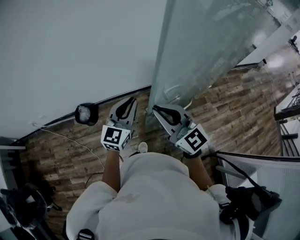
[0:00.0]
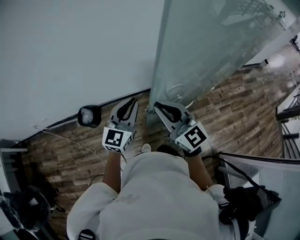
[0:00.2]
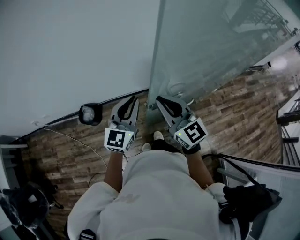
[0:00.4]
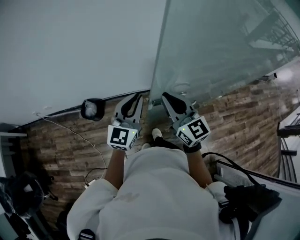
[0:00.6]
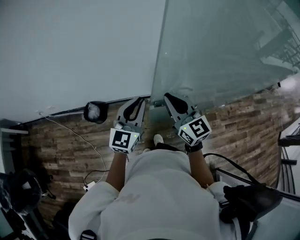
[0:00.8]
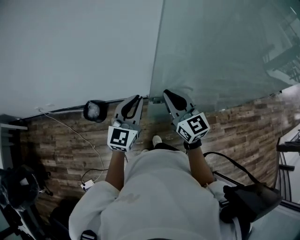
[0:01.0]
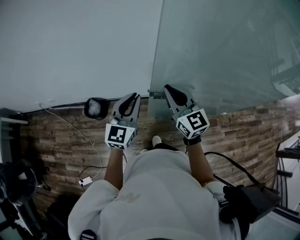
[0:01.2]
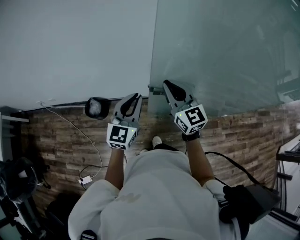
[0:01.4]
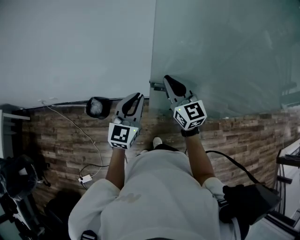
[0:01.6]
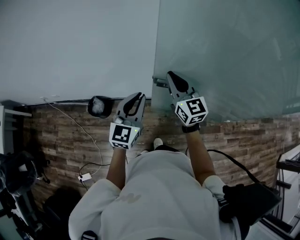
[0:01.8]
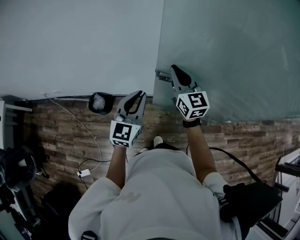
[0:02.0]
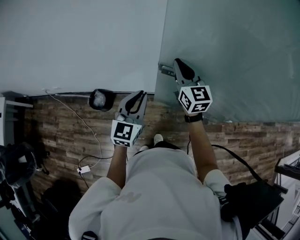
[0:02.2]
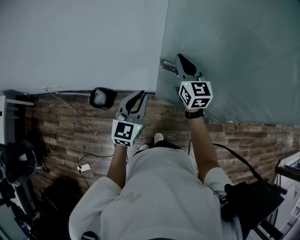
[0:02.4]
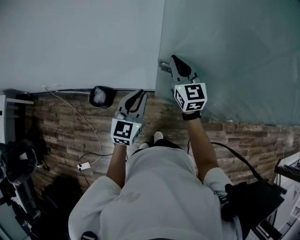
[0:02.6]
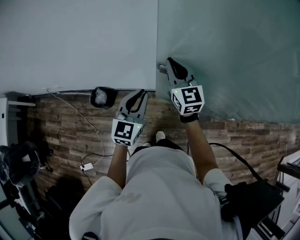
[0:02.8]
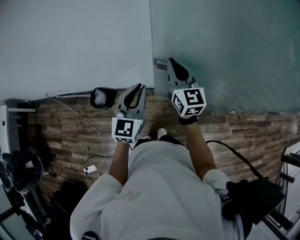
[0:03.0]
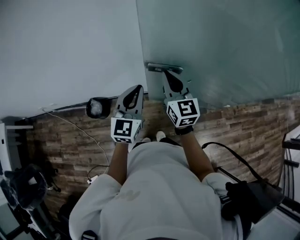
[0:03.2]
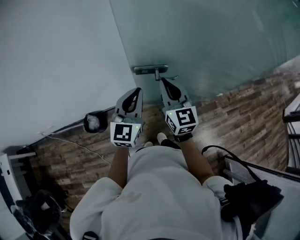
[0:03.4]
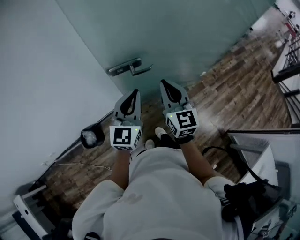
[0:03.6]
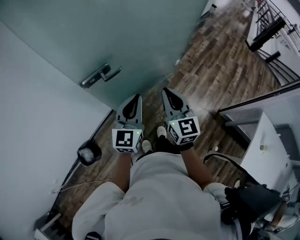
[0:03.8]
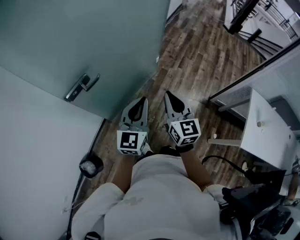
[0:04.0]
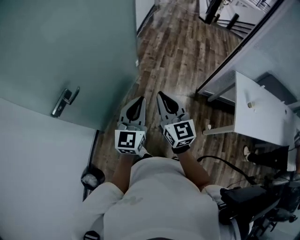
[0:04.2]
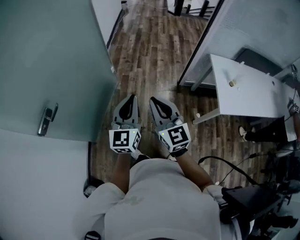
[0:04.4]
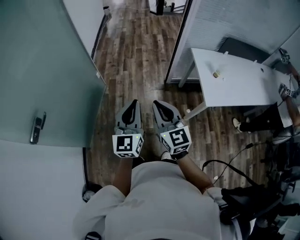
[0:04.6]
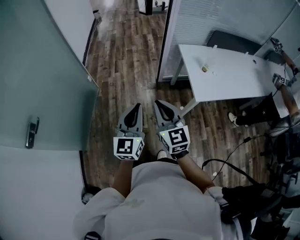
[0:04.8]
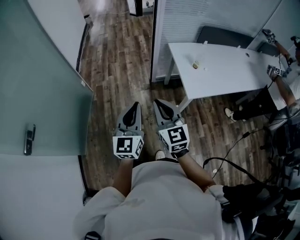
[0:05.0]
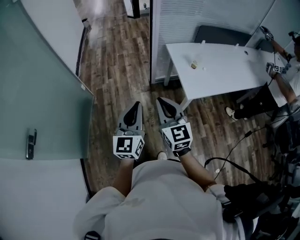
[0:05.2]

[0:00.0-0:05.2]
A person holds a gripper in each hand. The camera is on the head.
0:00.0 to 0:01.8: The left gripper is displaced forward by approximately 20 cm. Meanwhile the right gripper goes approximately 35 cm forward.
0:01.8 to 0:03.4: The left gripper is displaced to the right by roughly 5 cm, while the right gripper shifts roughly 10 cm backward and to the right, and rotates approximately 20 degrees.
0:03.4 to 0:05.2: Both grippers are carried some 70 cm. The left gripper swivels approximately 80 degrees, while the right gripper turns by roughly 80 degrees.

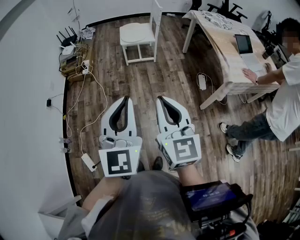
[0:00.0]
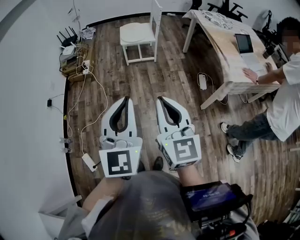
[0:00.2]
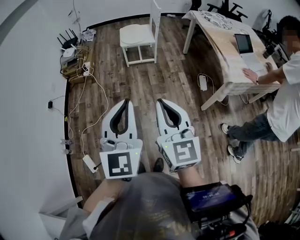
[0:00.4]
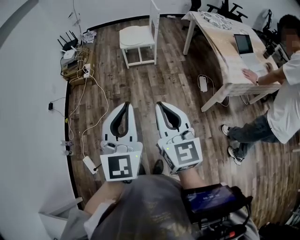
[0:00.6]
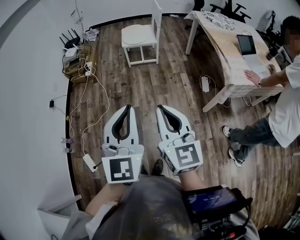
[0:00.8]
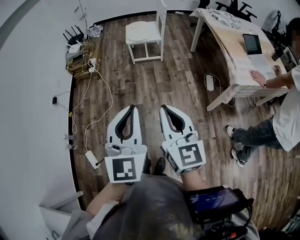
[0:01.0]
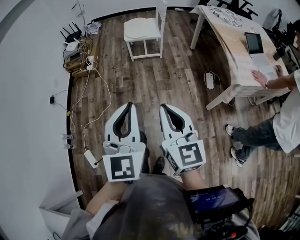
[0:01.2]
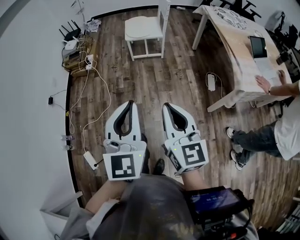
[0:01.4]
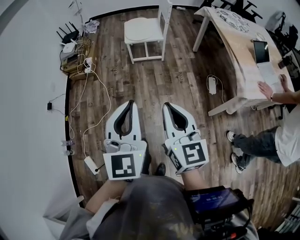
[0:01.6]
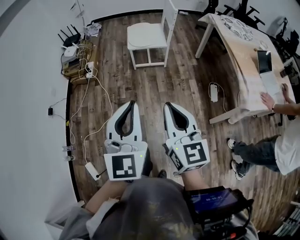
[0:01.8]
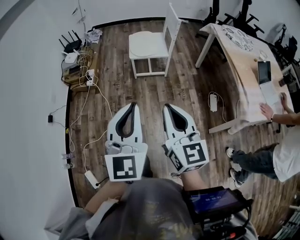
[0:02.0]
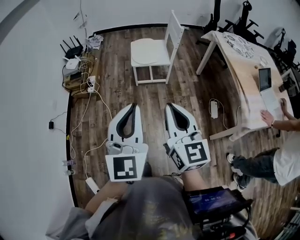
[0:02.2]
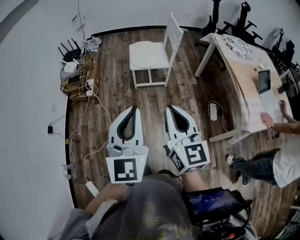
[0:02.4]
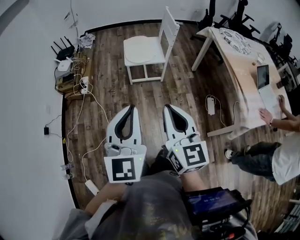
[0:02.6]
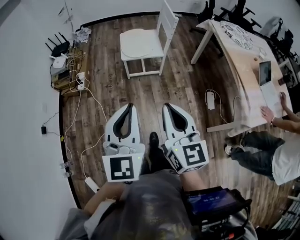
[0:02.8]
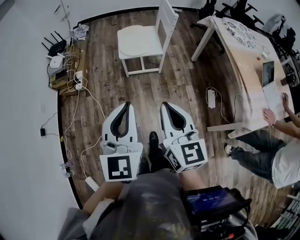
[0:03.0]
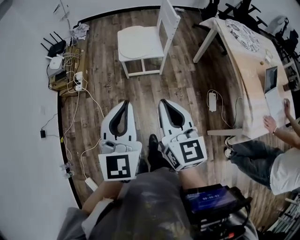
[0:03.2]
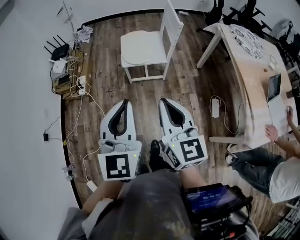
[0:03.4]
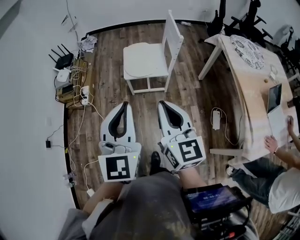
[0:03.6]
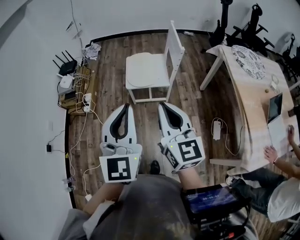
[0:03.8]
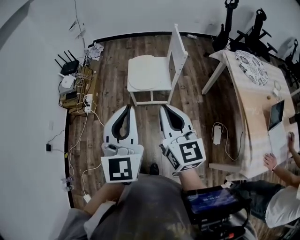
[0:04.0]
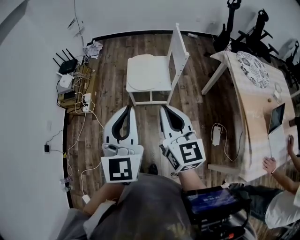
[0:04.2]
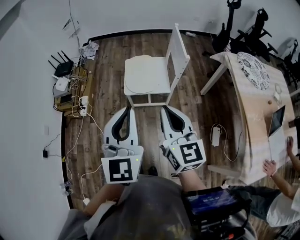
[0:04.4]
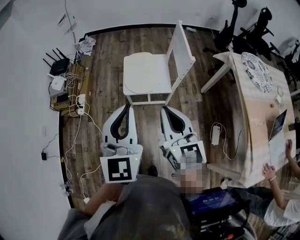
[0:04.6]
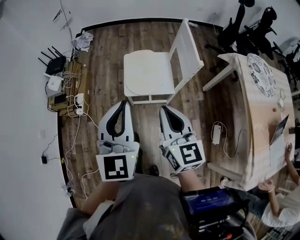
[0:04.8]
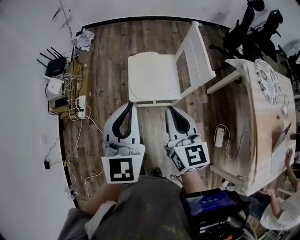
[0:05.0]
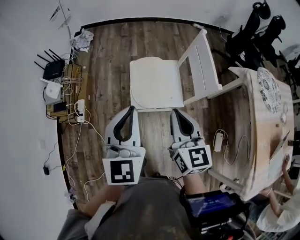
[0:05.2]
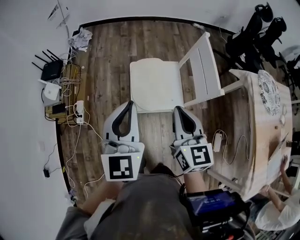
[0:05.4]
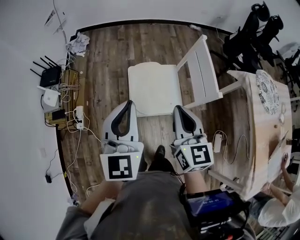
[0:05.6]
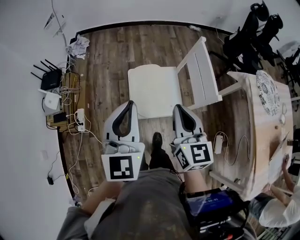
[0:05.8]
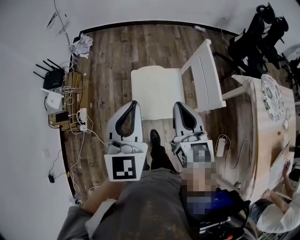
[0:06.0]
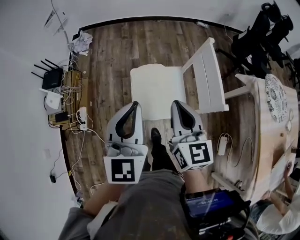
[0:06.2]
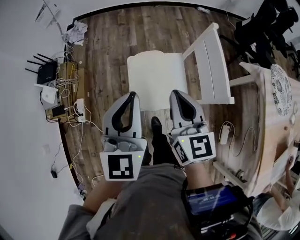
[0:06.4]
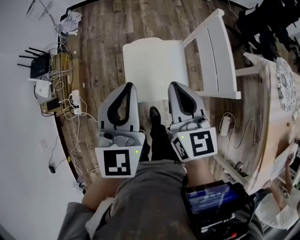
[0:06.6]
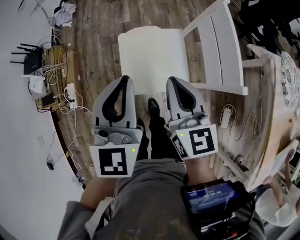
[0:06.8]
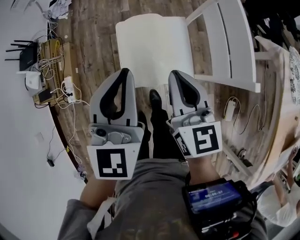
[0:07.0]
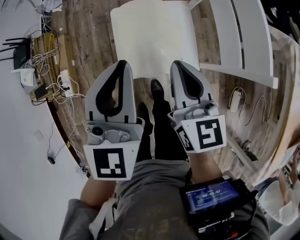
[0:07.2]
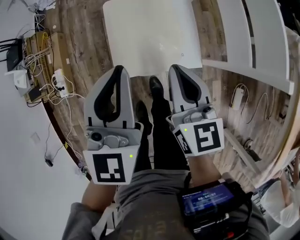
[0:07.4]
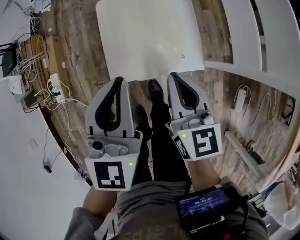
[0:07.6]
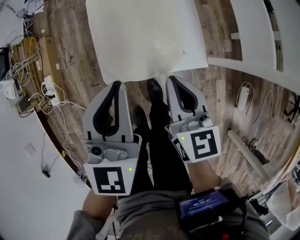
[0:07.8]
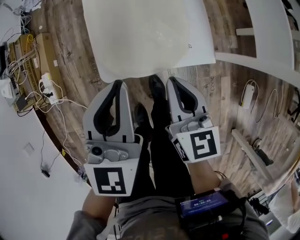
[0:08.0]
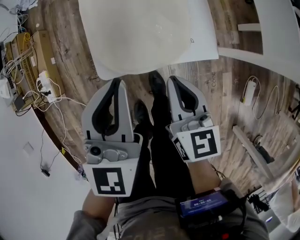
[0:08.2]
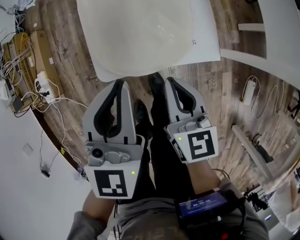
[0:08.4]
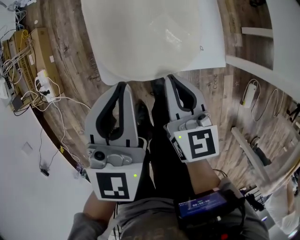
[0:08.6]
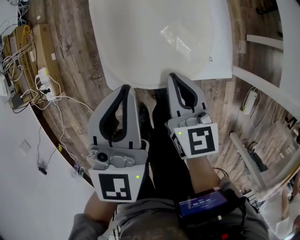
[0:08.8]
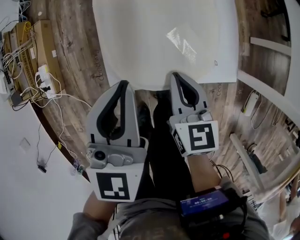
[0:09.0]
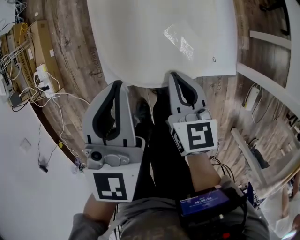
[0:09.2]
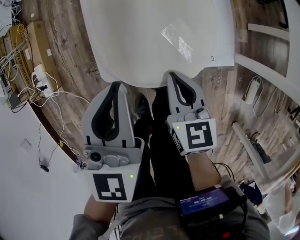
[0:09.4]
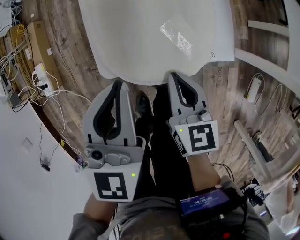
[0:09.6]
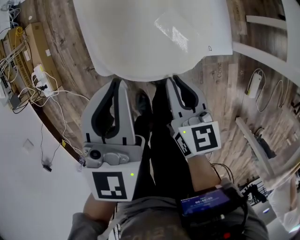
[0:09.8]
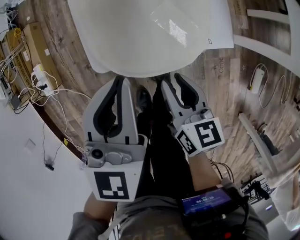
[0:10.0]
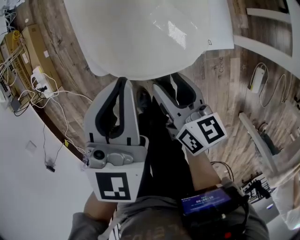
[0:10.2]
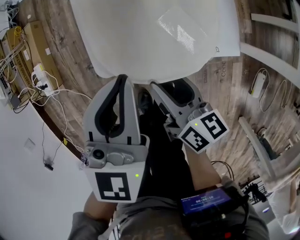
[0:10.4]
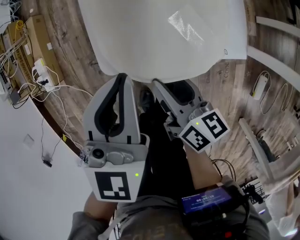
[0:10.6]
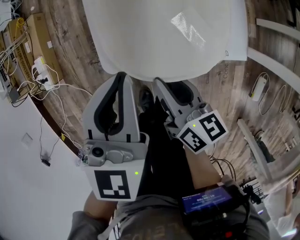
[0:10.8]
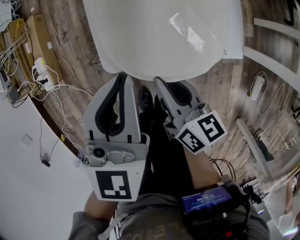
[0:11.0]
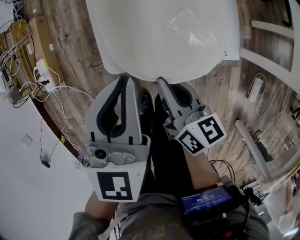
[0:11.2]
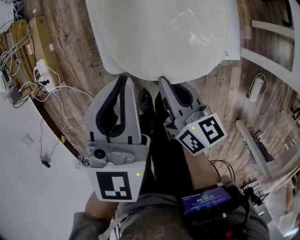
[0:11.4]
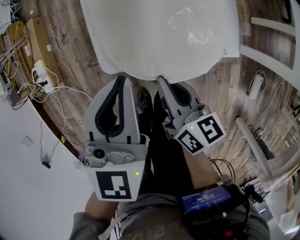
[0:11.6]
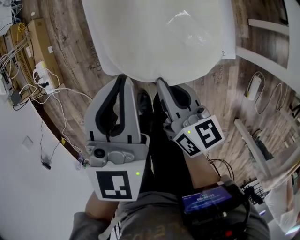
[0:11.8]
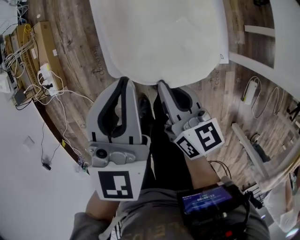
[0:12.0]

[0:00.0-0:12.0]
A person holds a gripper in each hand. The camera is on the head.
0:00.0 to 0:01.6: The right gripper travels forward and downward by some 15 cm, while the left gripper travels forward by approximately 15 cm.
0:01.6 to 0:03.0: Both grippers travel together forward, about 25 cm.
0:03.0 to 0:04.4: The grippers both shift forward by roughly 25 cm.
0:04.4 to 0:06.0: Both grippers travel together forward, about 30 cm.
0:06.0 to 0:07.6: Both grippers travel together downward, approximately 30 cm.
0:07.6 to 0:09.0: The two grippers go about 15 cm downward.
0:09.0 to 0:10.4: The right gripper moves backward, some 5 cm, rotates roughly 30 degrees, and opens its fingers.
0:10.4 to 0:12.0: The grippers both shift upward by about 5 cm. The right gripper closes up.

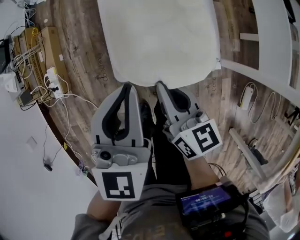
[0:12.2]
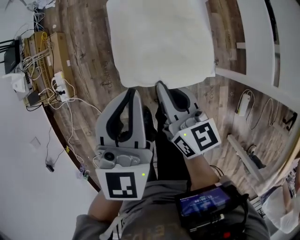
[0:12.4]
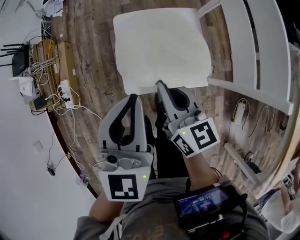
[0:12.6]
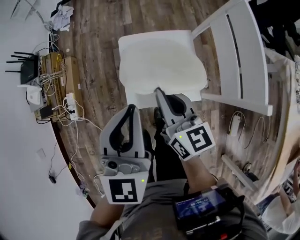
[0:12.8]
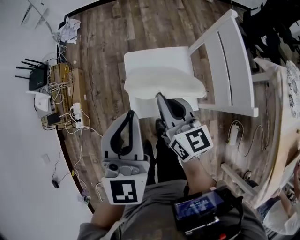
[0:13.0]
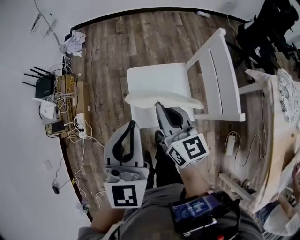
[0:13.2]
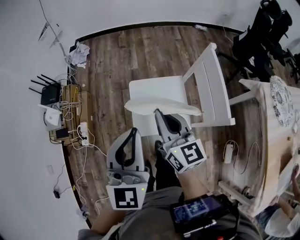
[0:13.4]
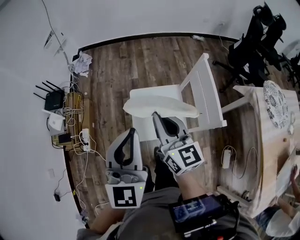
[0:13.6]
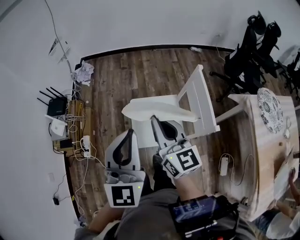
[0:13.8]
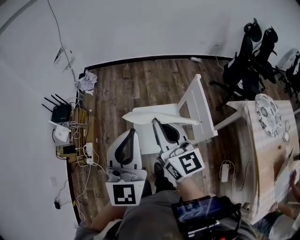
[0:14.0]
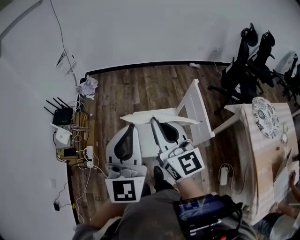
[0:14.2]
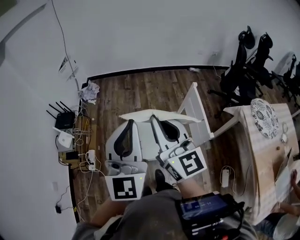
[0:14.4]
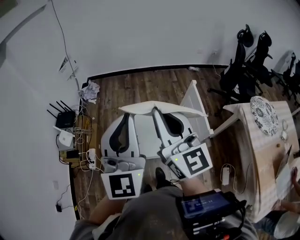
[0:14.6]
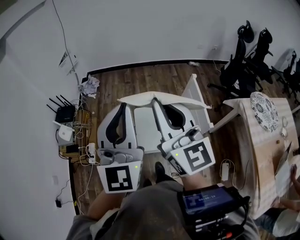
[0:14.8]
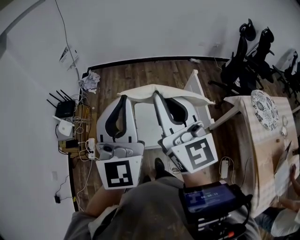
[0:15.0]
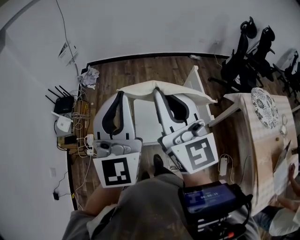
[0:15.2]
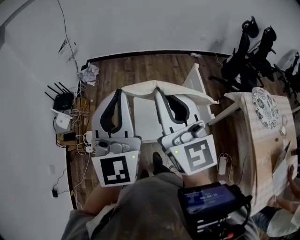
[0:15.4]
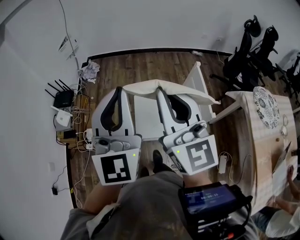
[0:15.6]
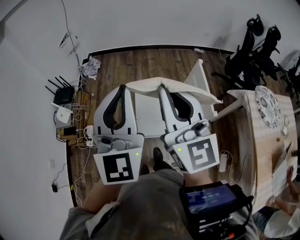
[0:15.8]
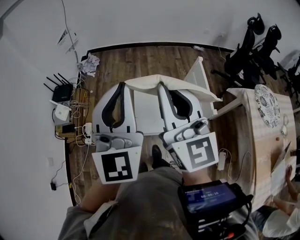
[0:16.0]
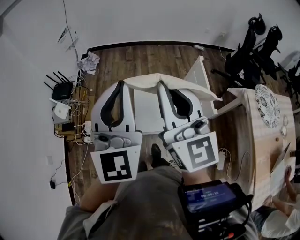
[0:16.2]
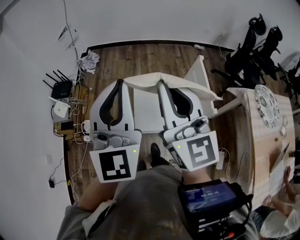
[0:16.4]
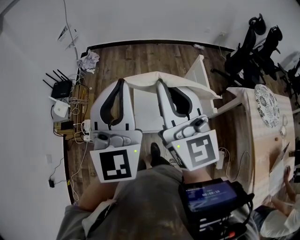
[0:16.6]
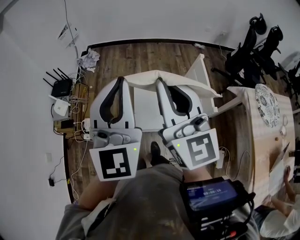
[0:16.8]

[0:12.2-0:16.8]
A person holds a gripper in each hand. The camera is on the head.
0:12.2 to 0:13.8: The grippers both shift upward by roughly 40 cm. The left gripper rotates approximately 30 degrees. The right gripper turns by some 30 degrees.
0:13.8 to 0:15.2: The right gripper is displaced upward by roughly 20 cm, and turns by roughly 20 degrees; the left gripper goes some 10 cm upward.
0:15.2 to 0:16.8: The grippers make only small movements.

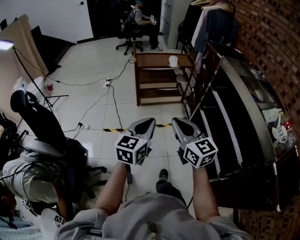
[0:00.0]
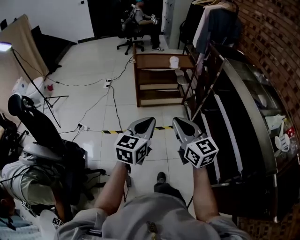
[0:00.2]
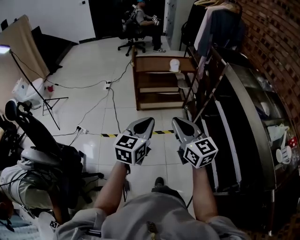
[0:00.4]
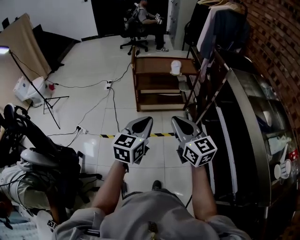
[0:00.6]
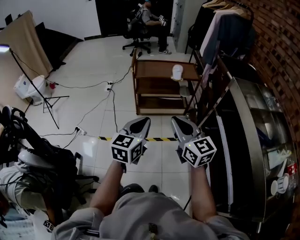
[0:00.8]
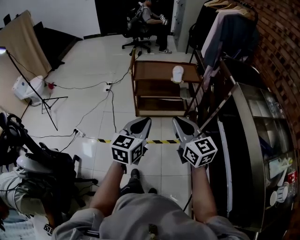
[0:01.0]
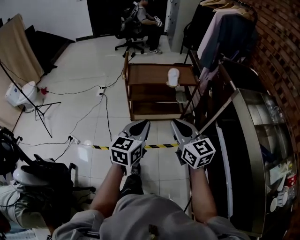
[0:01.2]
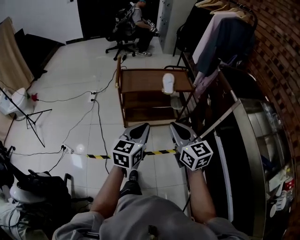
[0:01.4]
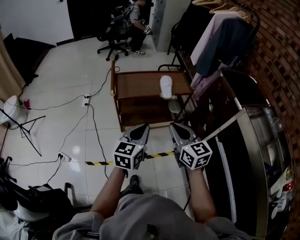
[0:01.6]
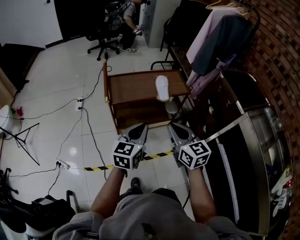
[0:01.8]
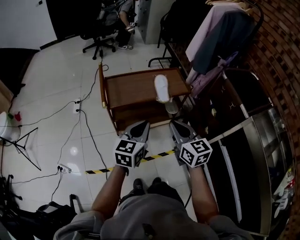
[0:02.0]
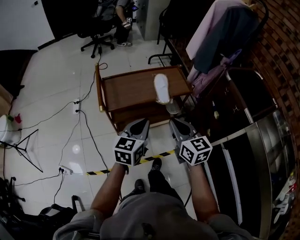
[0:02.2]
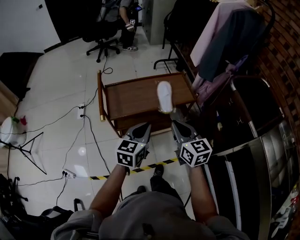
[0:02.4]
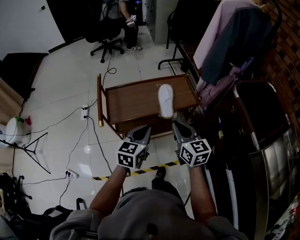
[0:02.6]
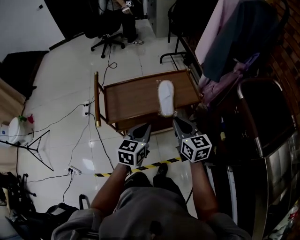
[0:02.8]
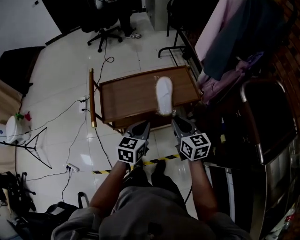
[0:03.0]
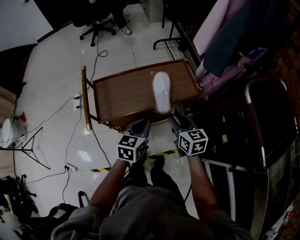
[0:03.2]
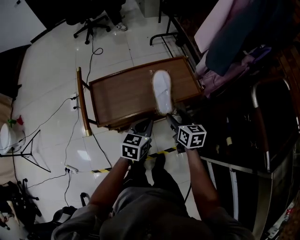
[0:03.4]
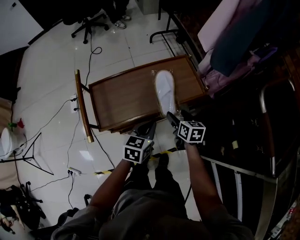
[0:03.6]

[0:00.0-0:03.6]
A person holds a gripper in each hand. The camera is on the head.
0:00.0 to 0:01.8: The pair of grippers is taken forward, approximately 50 cm.
0:01.8 to 0:03.6: Both grippers move forward and downward, some 40 cm. The left gripper turns by about 20 degrees; the right gripper swivels approximately 40 degrees, and opens up.
